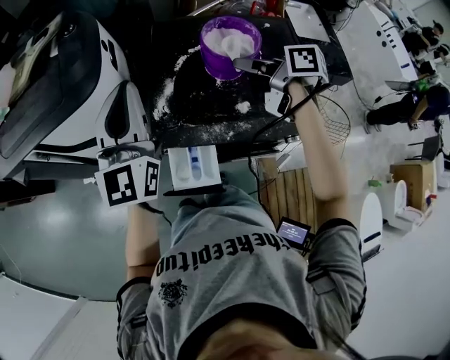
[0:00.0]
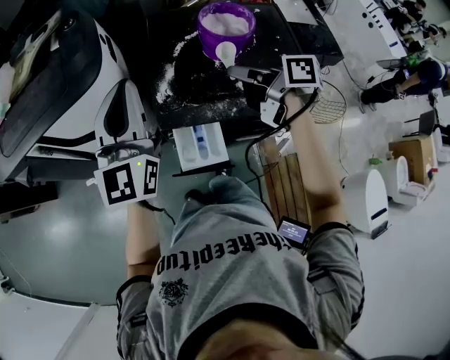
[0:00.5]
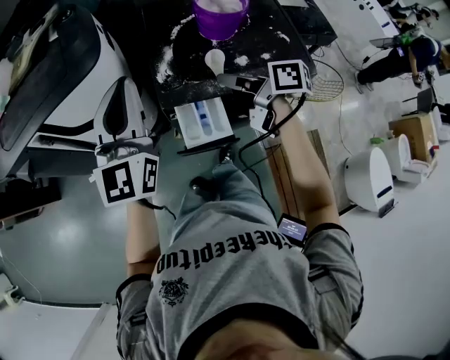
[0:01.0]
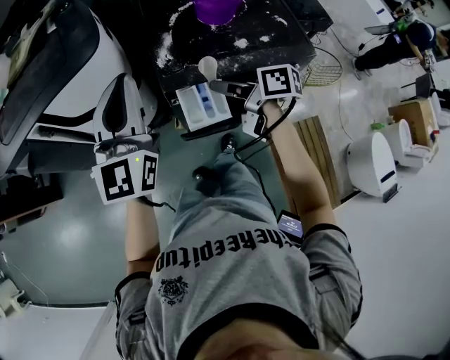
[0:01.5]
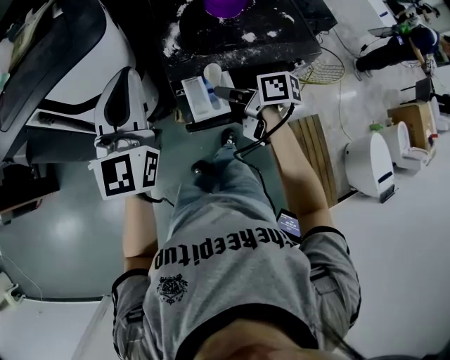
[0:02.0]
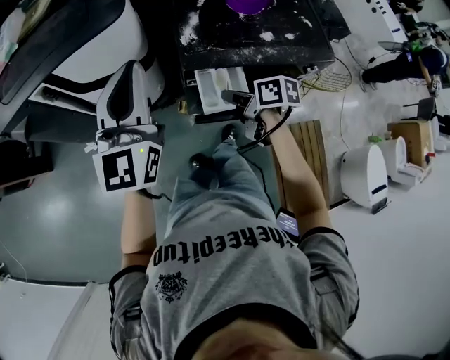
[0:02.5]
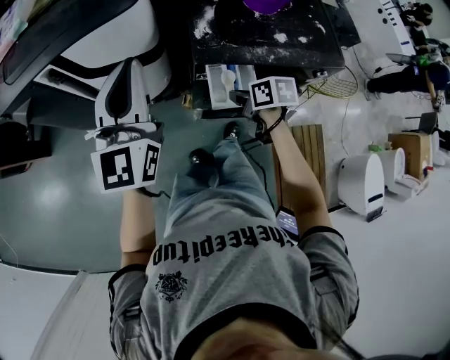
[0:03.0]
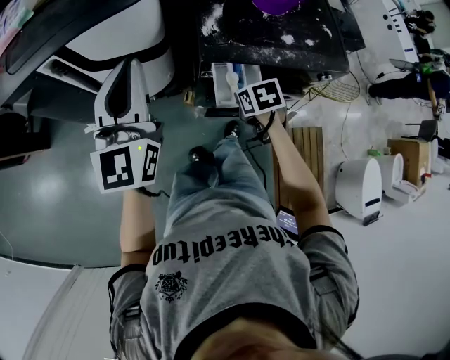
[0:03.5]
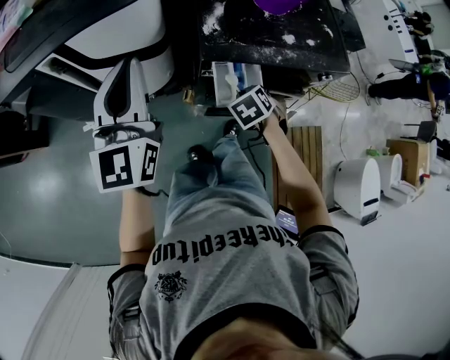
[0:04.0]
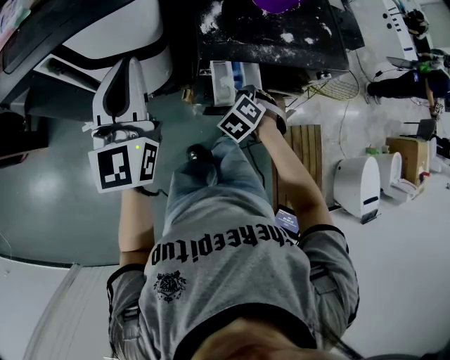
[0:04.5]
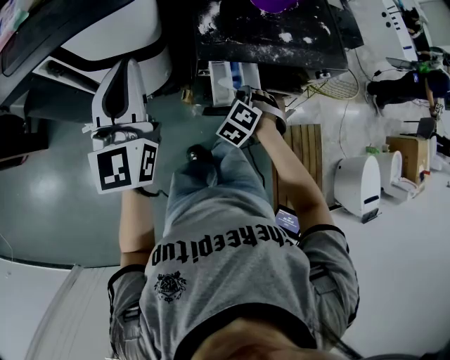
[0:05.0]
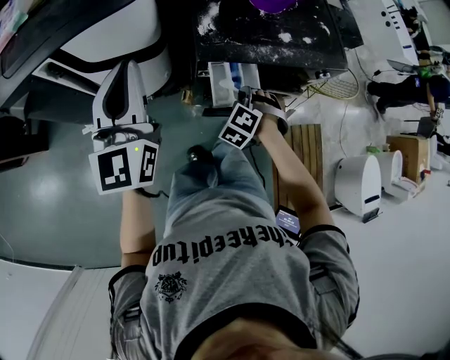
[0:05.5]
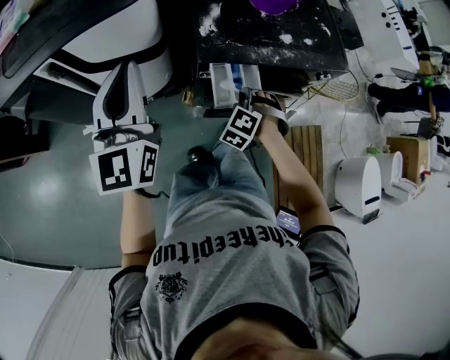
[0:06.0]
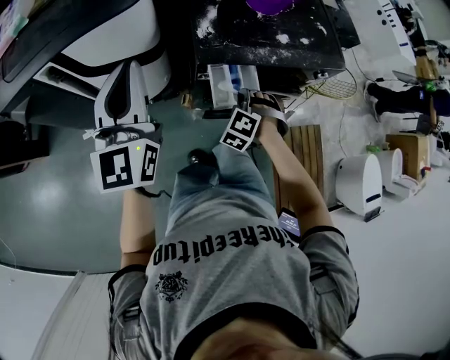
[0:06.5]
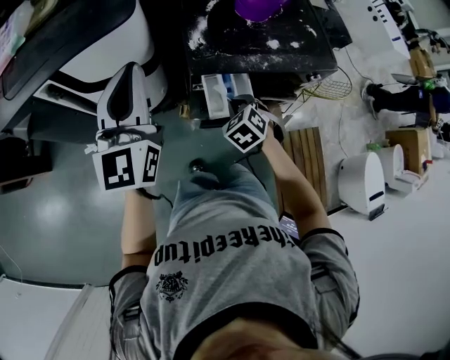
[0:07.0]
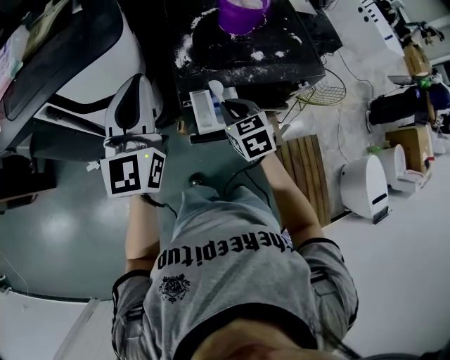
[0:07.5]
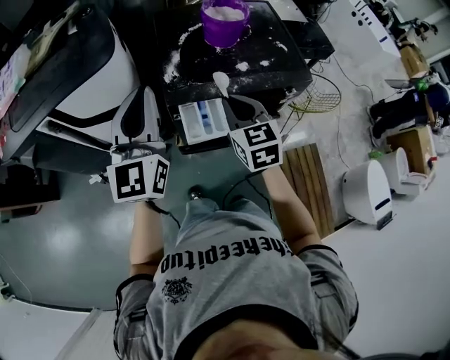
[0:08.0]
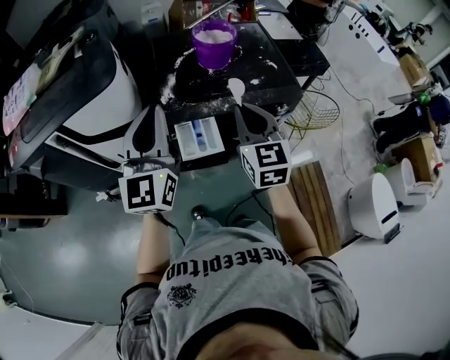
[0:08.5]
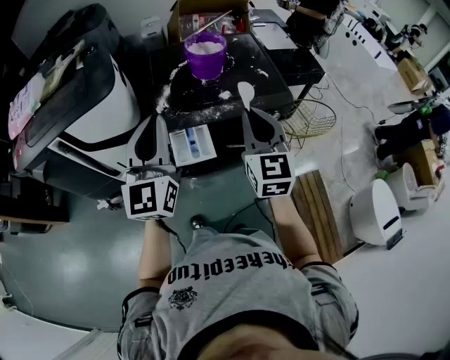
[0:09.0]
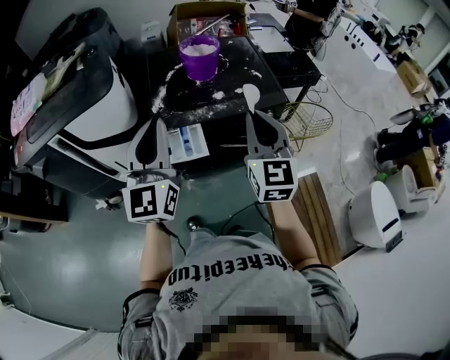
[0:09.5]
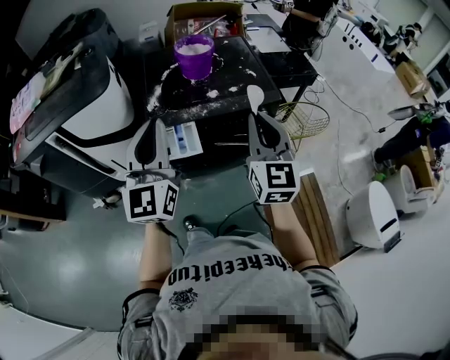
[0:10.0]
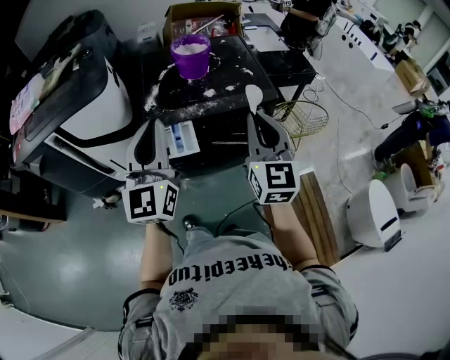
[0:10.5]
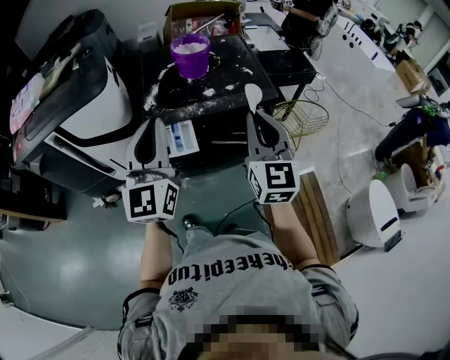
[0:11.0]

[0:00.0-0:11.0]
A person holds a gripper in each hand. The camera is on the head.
0:00.0 to 0:02.0: The left gripper shifts some 20 cm to the left and backward, while the right gripper goes some 30 cm to the left, backward and downward.
0:02.0 to 0:03.5: The right gripper is displaced downward by roughly 10 cm, and tips its fingers downward by about 40 degrees. Meanwhile the left gripper heads to the left, covering approximately 10 cm.
0:03.5 to 0:05.5: The right gripper rolls counterclockwise, seen from behind, by approximately 60 degrees.
0:05.5 to 0:07.5: The left gripper goes about 5 cm to the right; the right gripper heads upward, covering roughly 10 cm, and rotates around the line of its fingers by some 50 degrees, clockwise from behind.
0:07.5 to 0:09.0: The left gripper is displaced to the right and backward by approximately 15 cm. Meanwhile the right gripper is displaced upward and to the right by approximately 25 cm, and tips its fingers upward by approximately 40 degrees.
0:09.0 to 0:11.0: Both grippers move to the right and backward, roughly 10 cm.

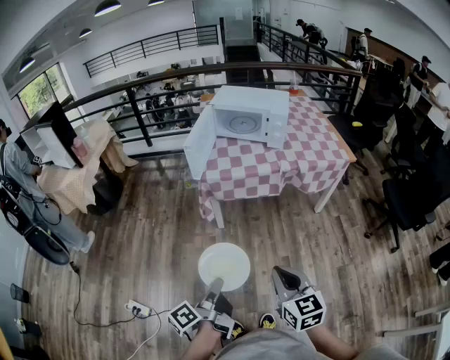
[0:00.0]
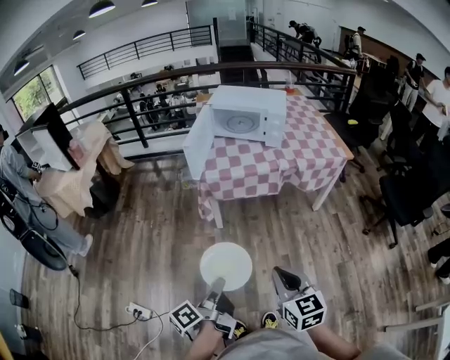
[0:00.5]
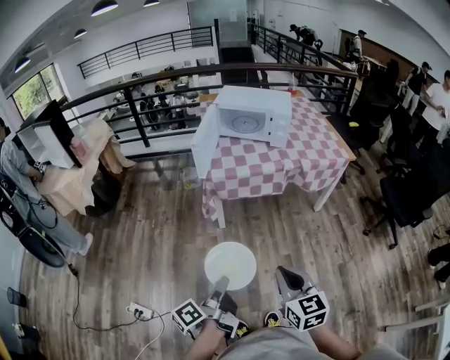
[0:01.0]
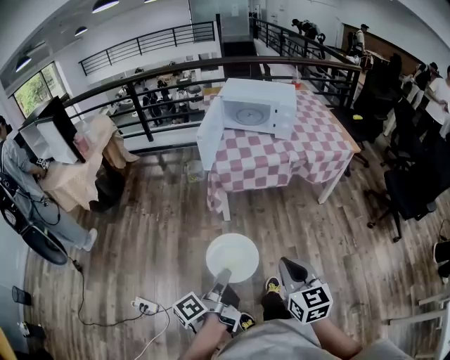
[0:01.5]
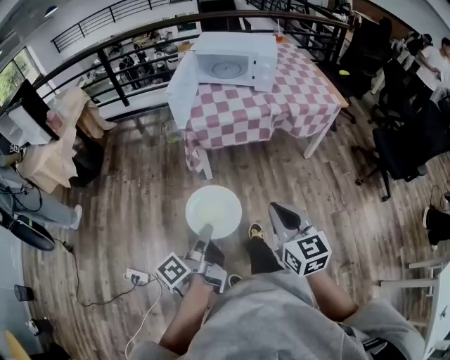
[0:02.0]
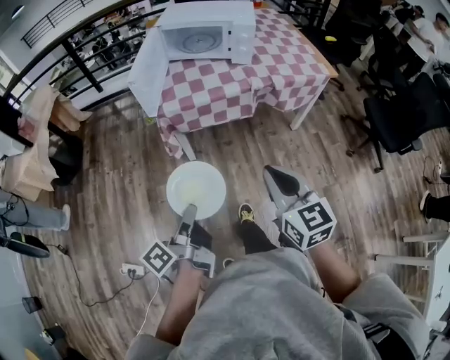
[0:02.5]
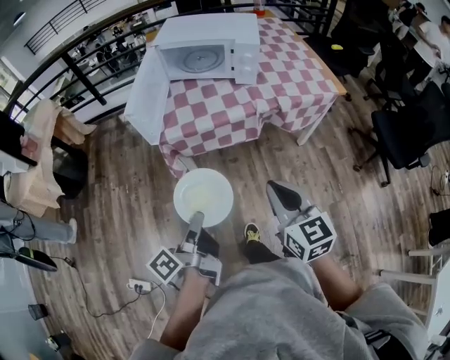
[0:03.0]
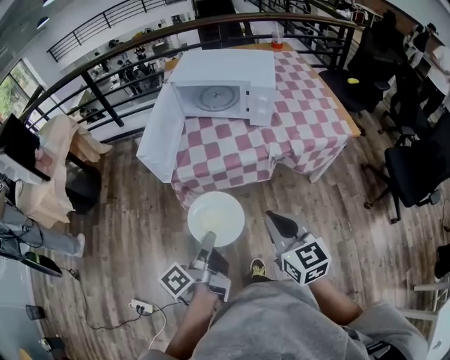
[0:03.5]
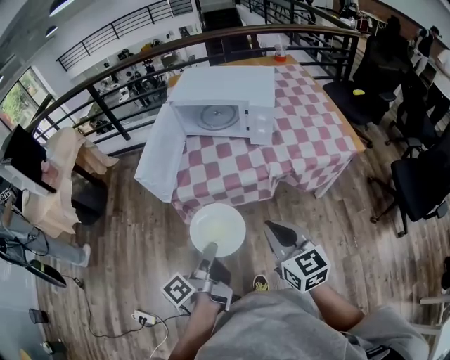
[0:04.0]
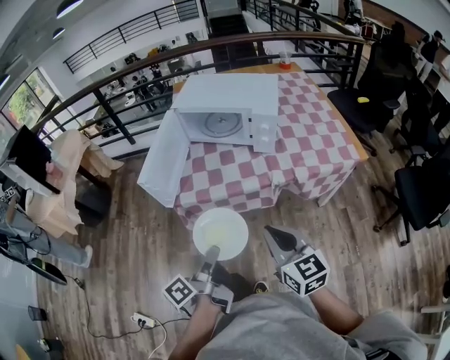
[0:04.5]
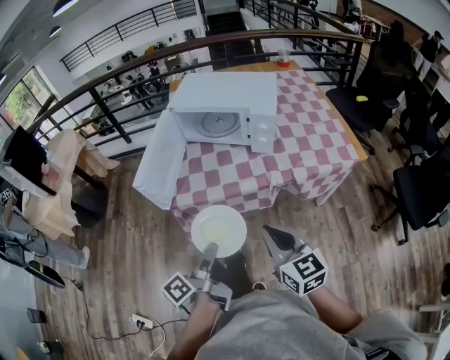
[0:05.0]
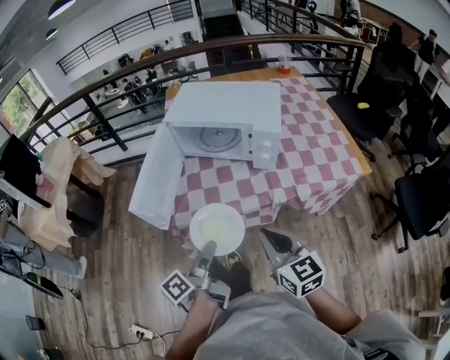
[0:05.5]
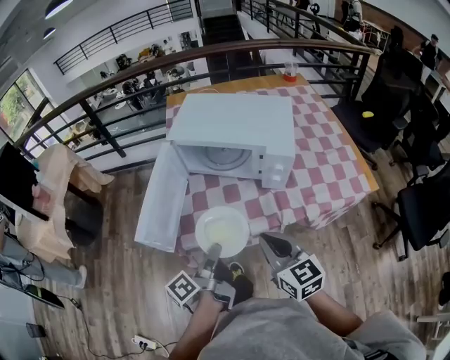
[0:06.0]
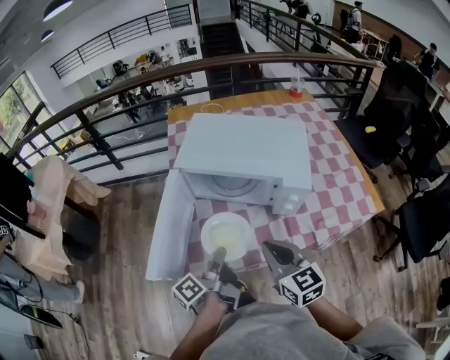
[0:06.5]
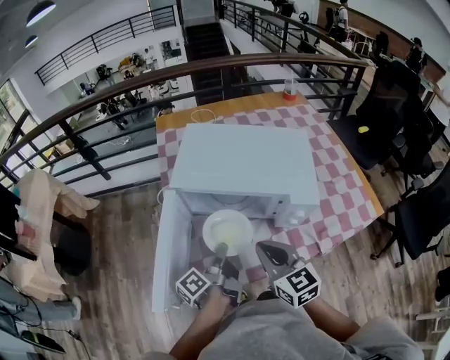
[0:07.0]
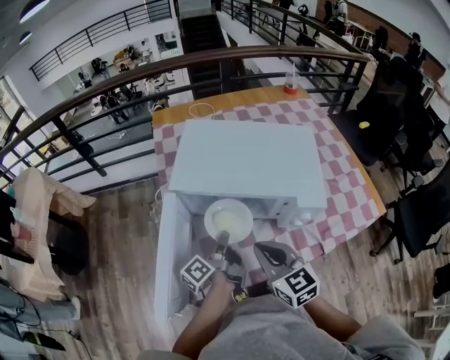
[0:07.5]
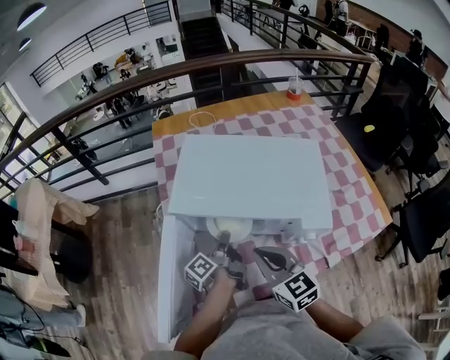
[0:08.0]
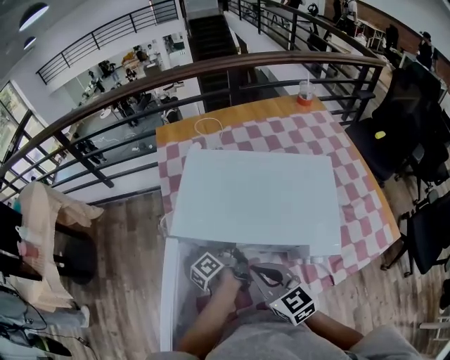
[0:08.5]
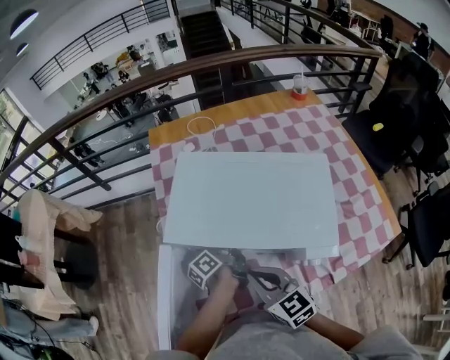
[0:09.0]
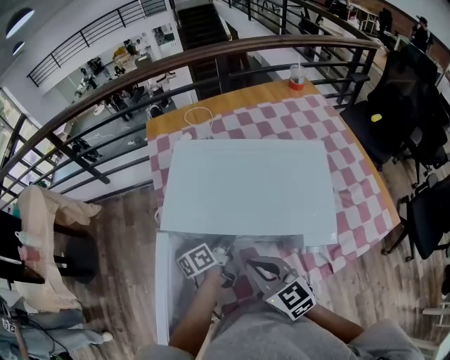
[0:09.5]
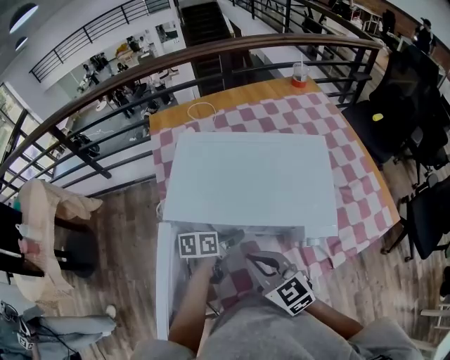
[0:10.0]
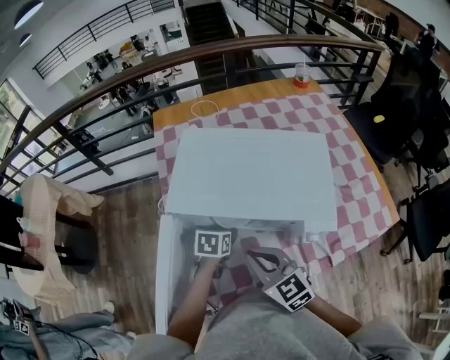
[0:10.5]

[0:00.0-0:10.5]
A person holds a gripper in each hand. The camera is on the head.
0:00.0 to 0:02.0: The left gripper moves approximately 5 cm.
0:02.0 to 0:04.0: The right gripper shifts some 30 cm forward, while the left gripper goes some 30 cm forward and to the right.
0:04.0 to 0:06.5: Both grippers travel together forward, roughly 30 cm.
0:06.5 to 0:08.5: The left gripper is displaced forward by some 30 cm; the right gripper heads forward, covering some 20 cm.
0:08.5 to 0:10.5: The left gripper rolls clockwise, seen from behind, by some 70 degrees, and opens its fingers.

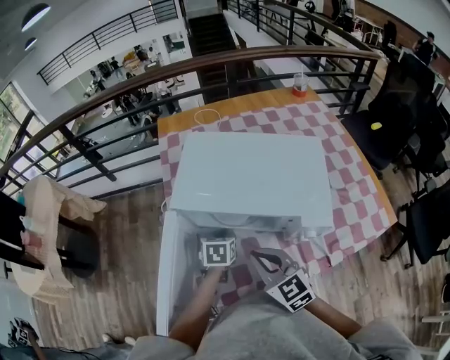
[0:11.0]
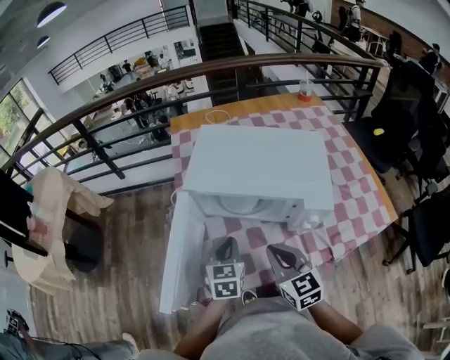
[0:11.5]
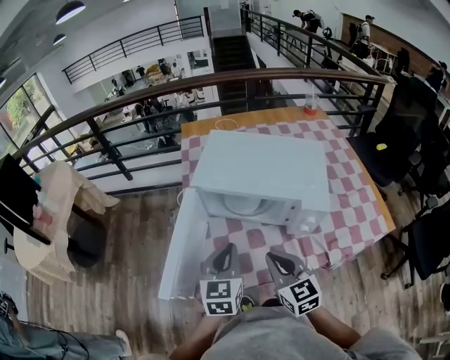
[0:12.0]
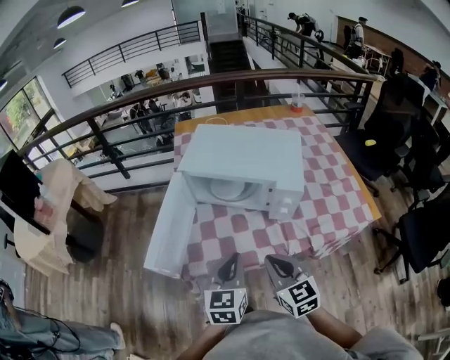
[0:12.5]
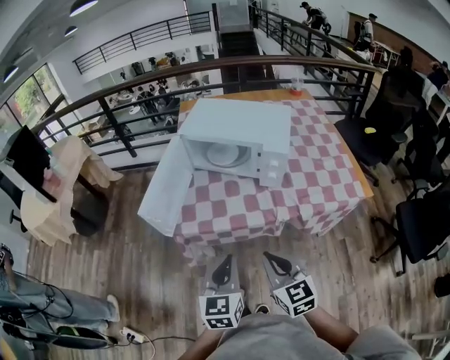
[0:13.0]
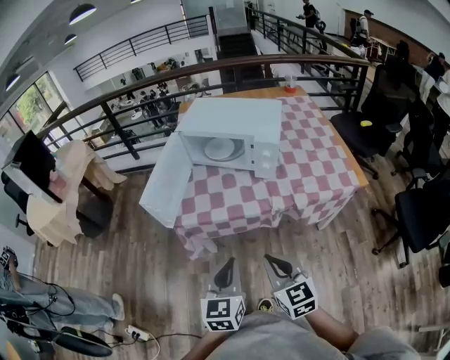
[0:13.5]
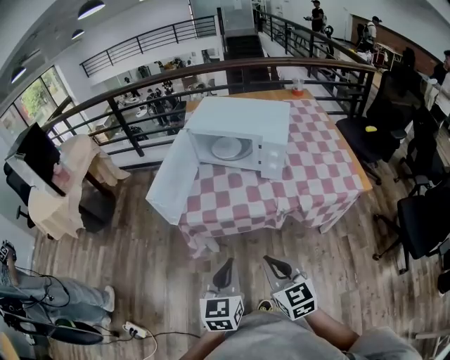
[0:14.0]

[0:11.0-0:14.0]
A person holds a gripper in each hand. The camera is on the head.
0:11.0 to 0:12.5: The right gripper goes some 20 cm backward. Meanwhile the left gripper moves backward and upward, some 35 cm, and points its fingers approximately 30 degrees further upward.
0:12.5 to 0:14.0: Both grippers travel together backward, roughly 25 cm.

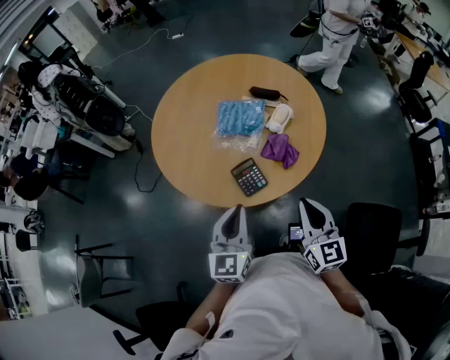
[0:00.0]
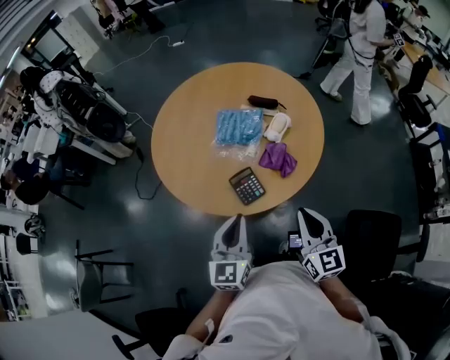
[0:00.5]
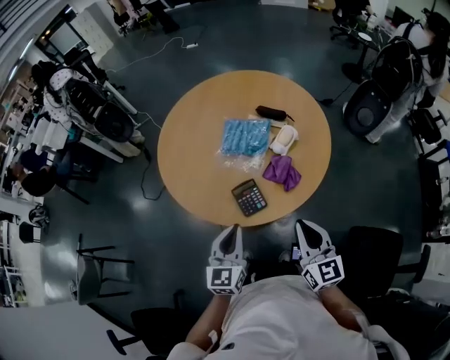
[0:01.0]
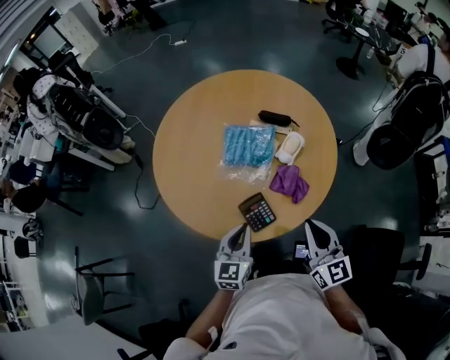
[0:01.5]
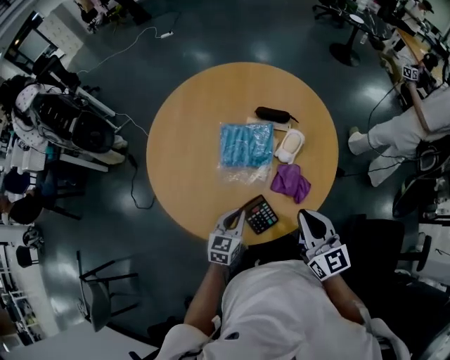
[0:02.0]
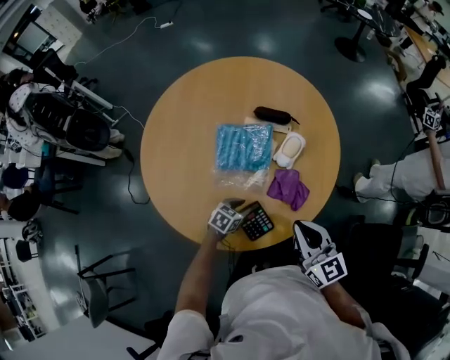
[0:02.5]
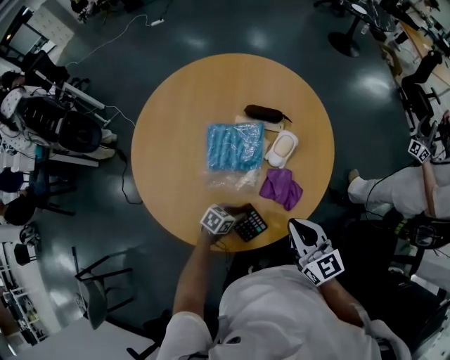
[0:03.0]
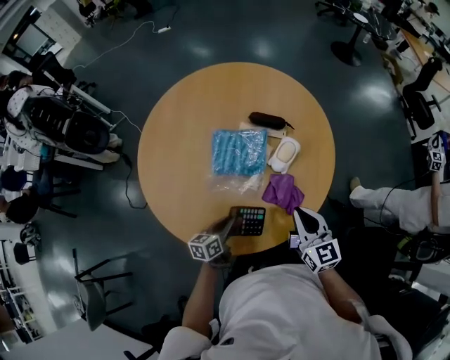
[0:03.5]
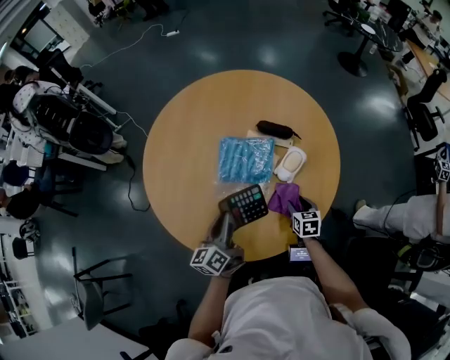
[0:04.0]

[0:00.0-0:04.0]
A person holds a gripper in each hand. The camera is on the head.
0:00.0 to 0:02.0: The right gripper travels forward by some 15 cm. The left gripper moves forward and downward, approximately 25 cm, and turns by about 30 degrees.
0:02.0 to 0:04.0: The right gripper moves downward, roughly 25 cm, tilts its fingers about 40 degrees downward, and opens up, while the left gripper goes downward and returns, about 15 cm each way, changes its angle by approximately 50 degrees, and opens and closes again.
